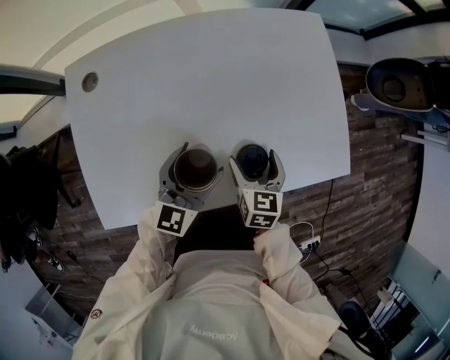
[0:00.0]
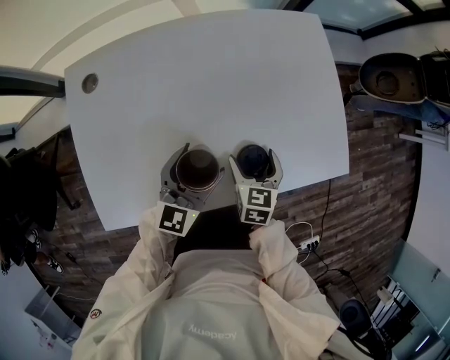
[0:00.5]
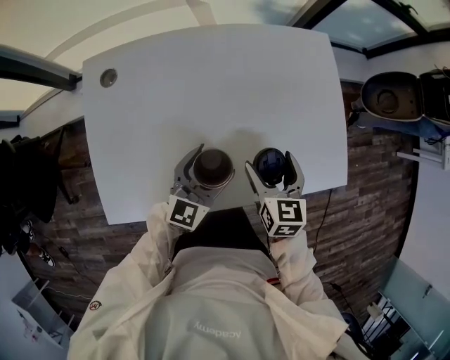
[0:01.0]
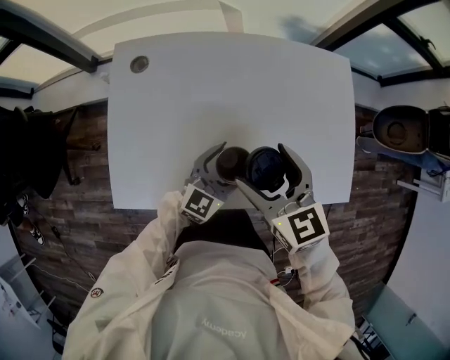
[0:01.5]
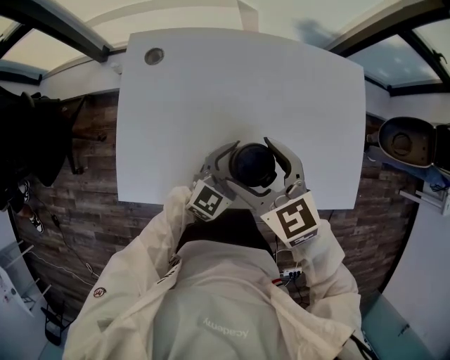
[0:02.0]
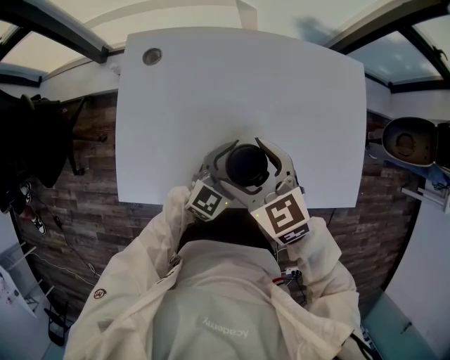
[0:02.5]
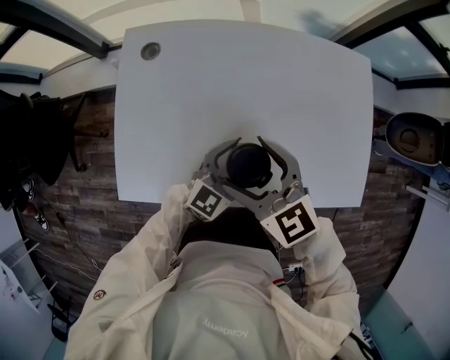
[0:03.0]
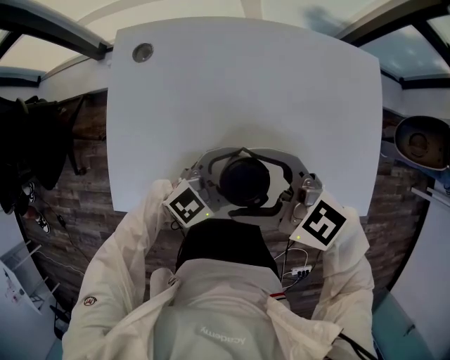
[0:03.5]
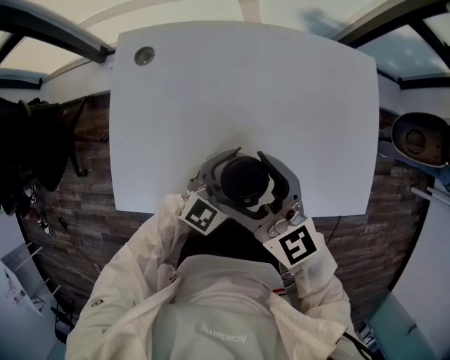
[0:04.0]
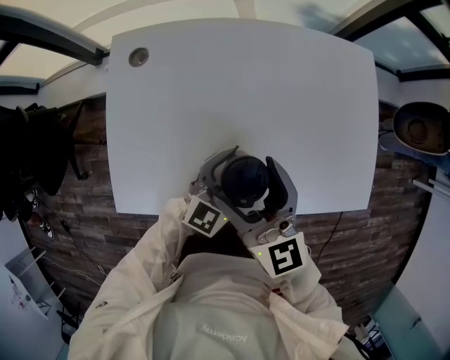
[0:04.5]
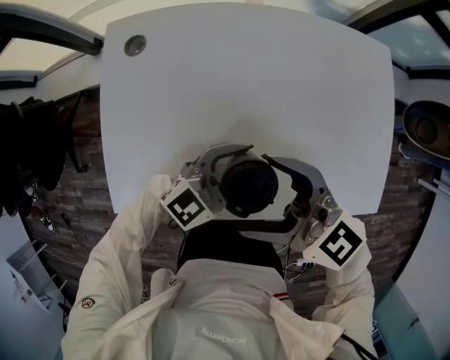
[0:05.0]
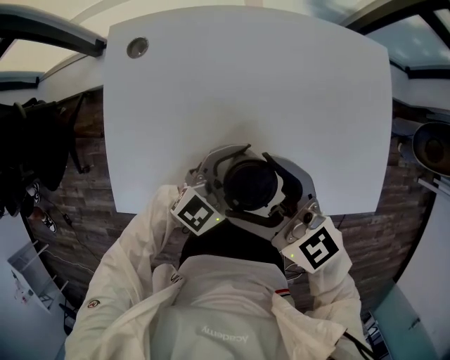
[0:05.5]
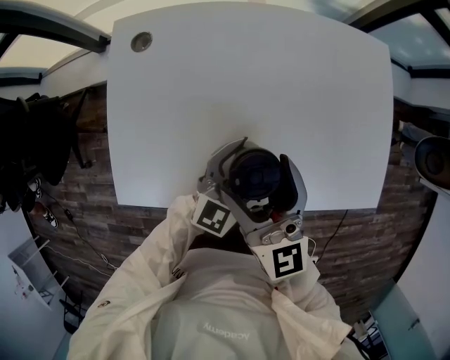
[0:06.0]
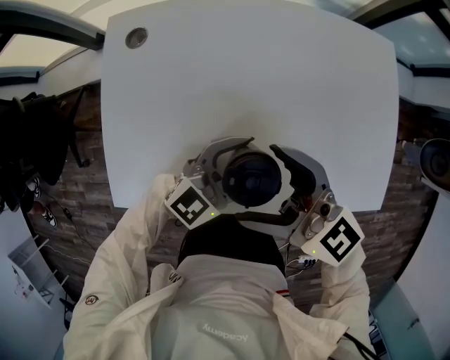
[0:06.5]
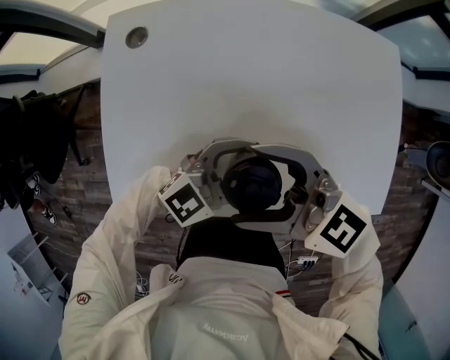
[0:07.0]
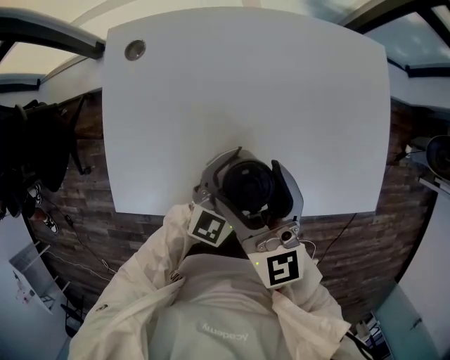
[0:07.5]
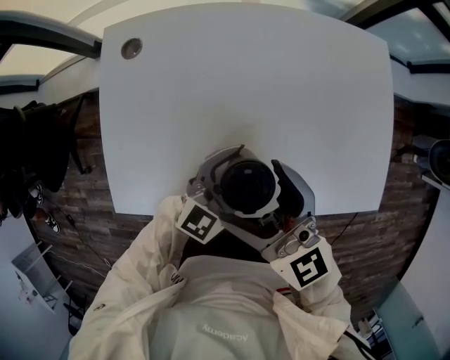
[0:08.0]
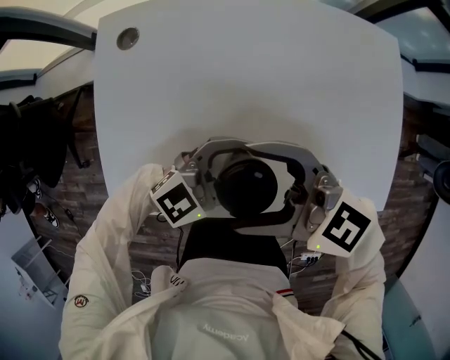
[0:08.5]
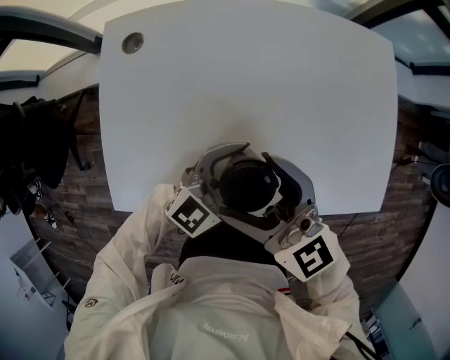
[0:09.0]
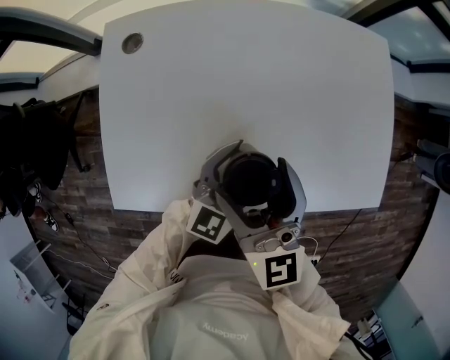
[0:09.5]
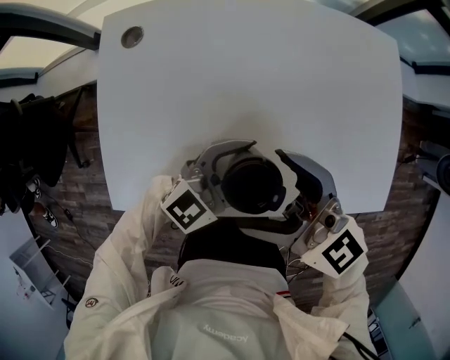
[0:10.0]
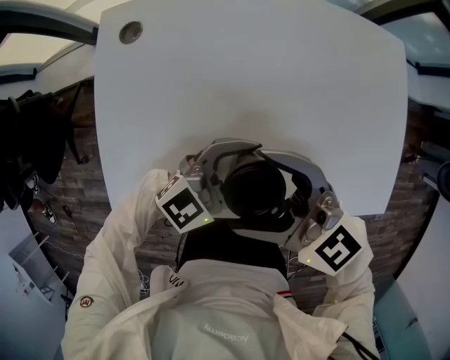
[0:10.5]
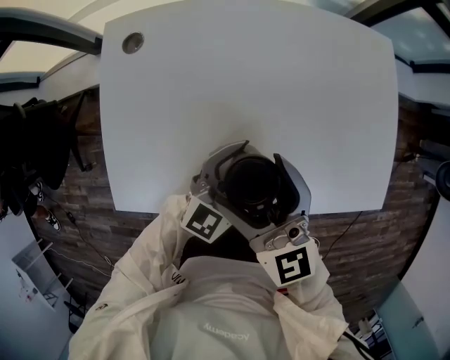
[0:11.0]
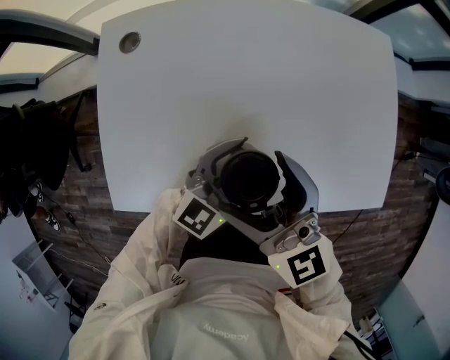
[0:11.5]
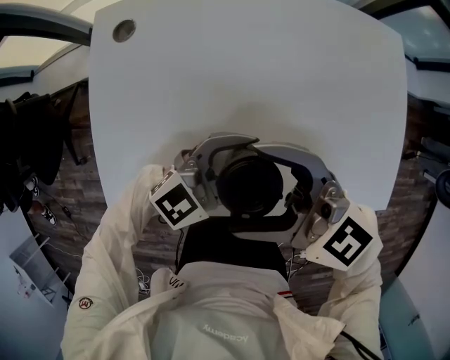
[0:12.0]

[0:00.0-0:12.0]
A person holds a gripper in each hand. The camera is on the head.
0:00.0 to 0:02.0: The right gripper moves upward, about 20 cm, and swivels roughly 50 degrees.
0:02.0 to 0:04.0: The right gripper changes its angle by roughly 20 degrees.
0:04.0 to 0:06.0: The right gripper swivels about 20 degrees.

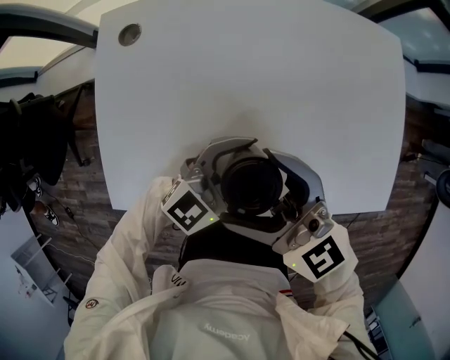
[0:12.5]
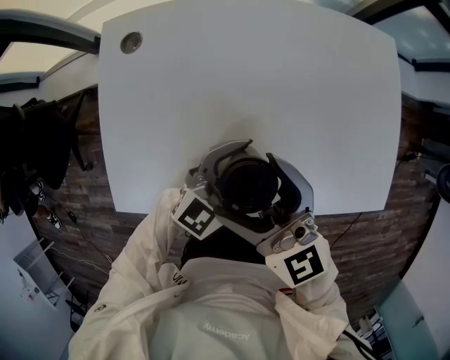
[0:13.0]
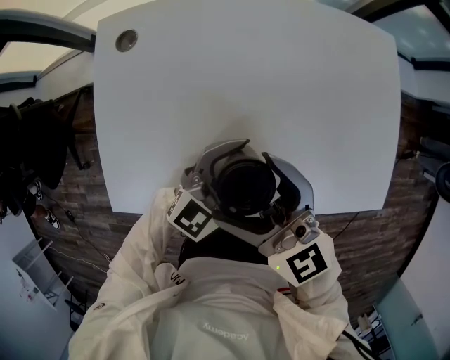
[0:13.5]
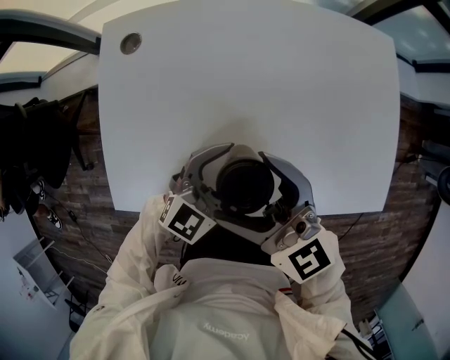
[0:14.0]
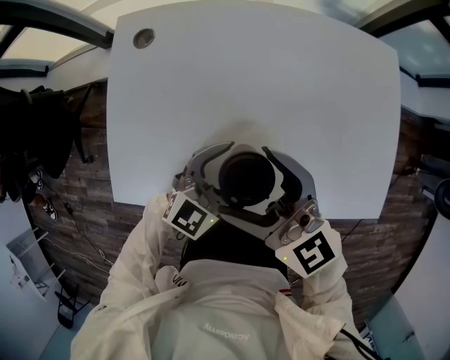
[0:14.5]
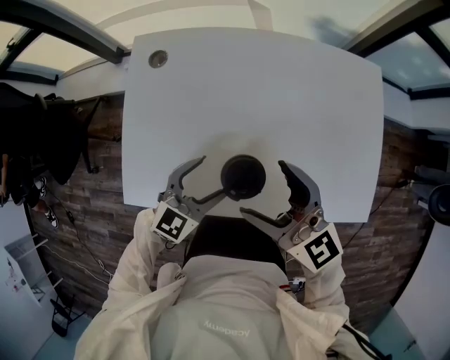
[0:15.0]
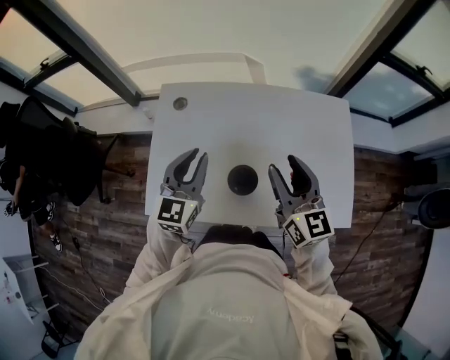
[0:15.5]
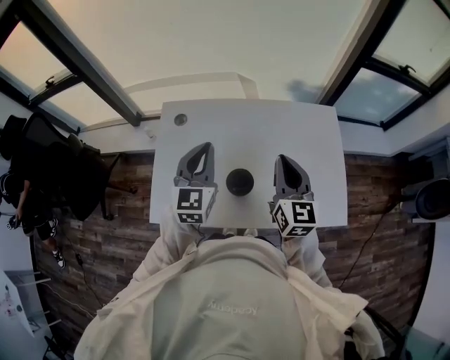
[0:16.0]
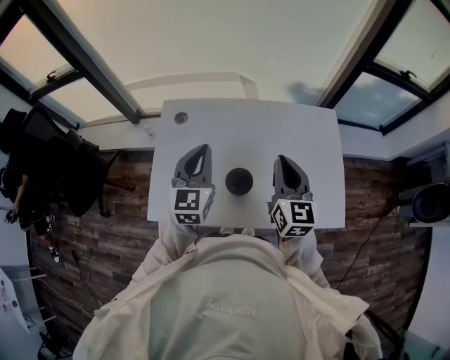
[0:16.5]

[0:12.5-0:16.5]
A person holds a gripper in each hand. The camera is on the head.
0:12.5 to 0:14.5: The grippers make only small movements.
0:14.5 to 0:16.5: The right gripper heads upward and to the right, covering approximately 20 cm, changes its angle by roughly 40 degrees, and closes, while the left gripper heads upward, covering approximately 30 cm, turns by roughly 40 degrees, and closes up.

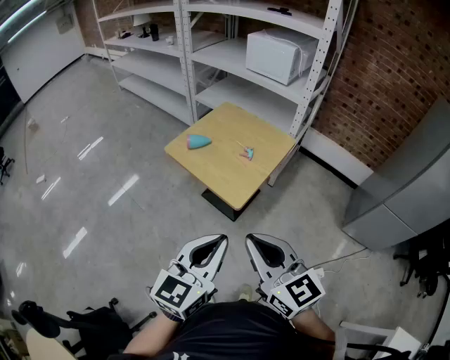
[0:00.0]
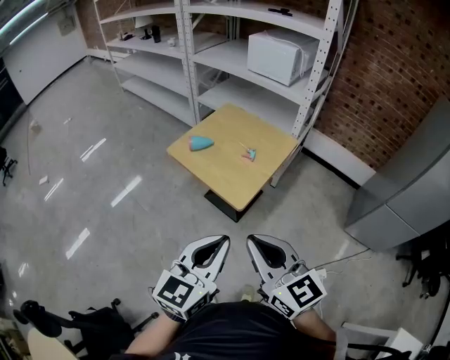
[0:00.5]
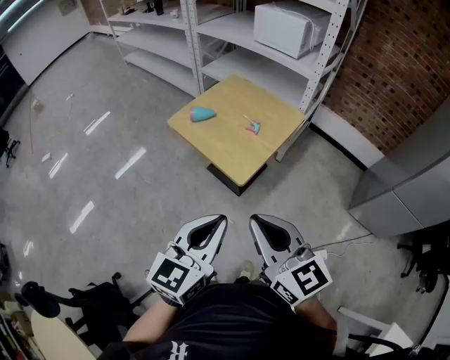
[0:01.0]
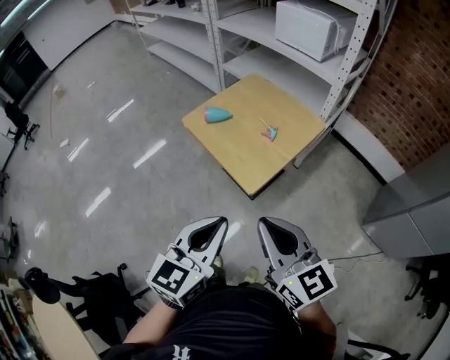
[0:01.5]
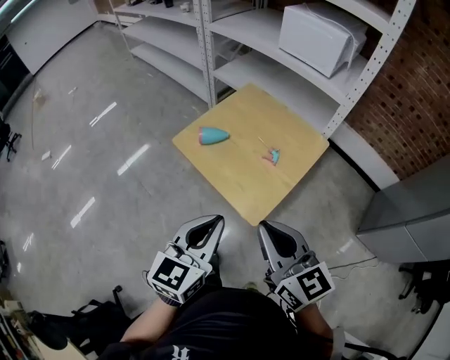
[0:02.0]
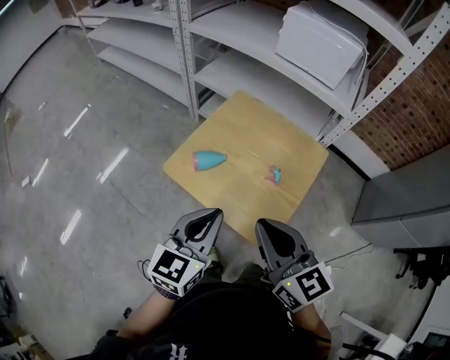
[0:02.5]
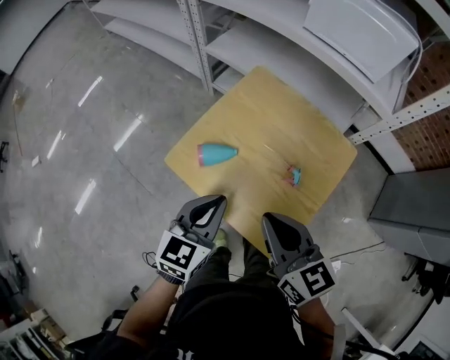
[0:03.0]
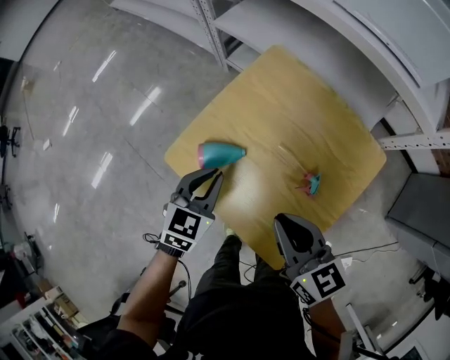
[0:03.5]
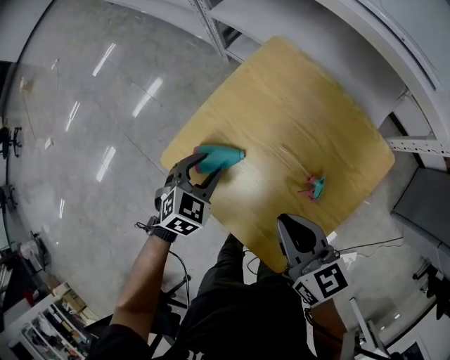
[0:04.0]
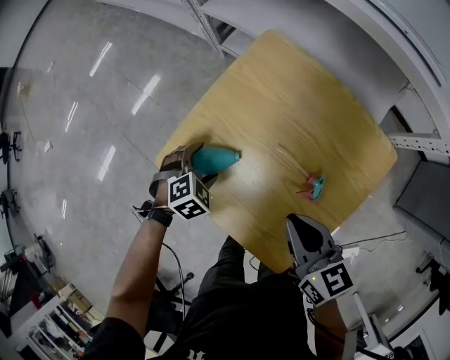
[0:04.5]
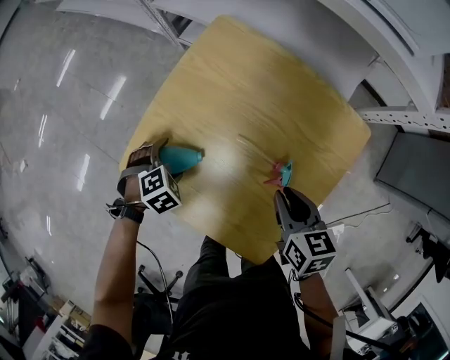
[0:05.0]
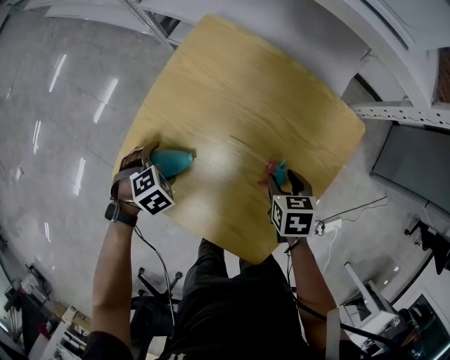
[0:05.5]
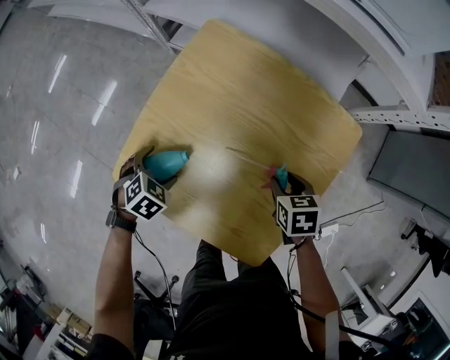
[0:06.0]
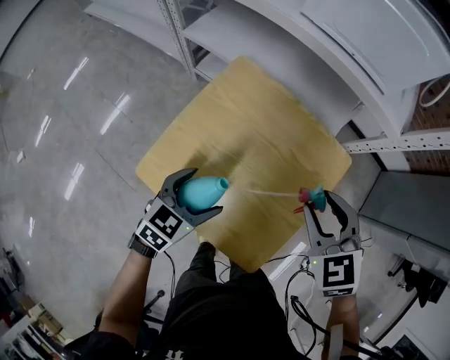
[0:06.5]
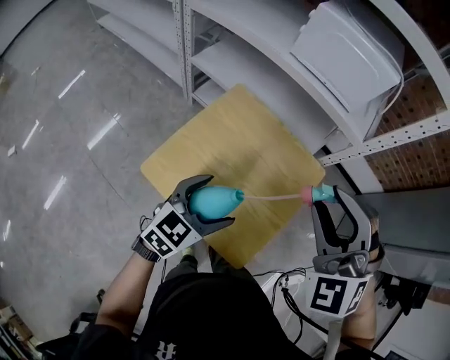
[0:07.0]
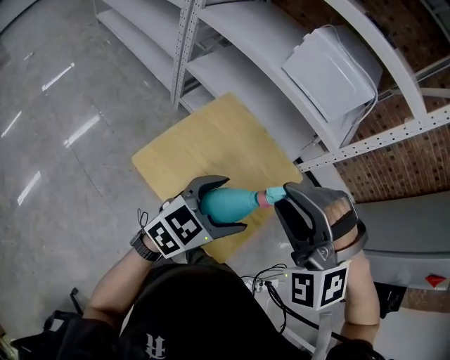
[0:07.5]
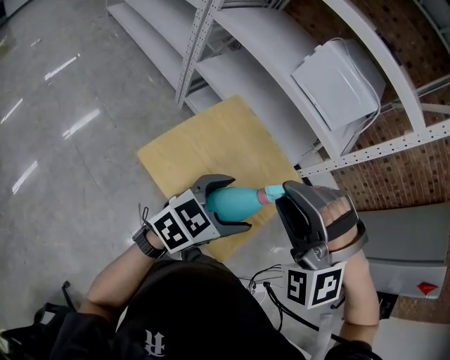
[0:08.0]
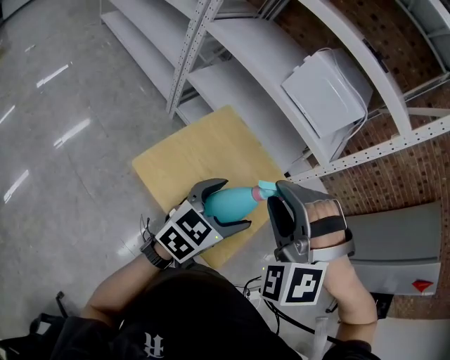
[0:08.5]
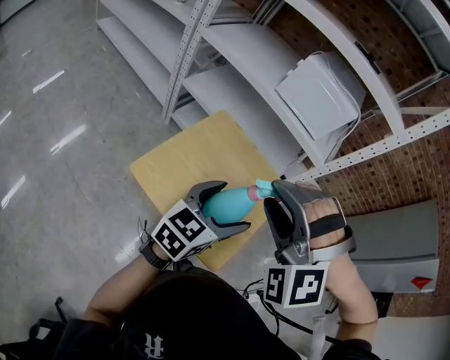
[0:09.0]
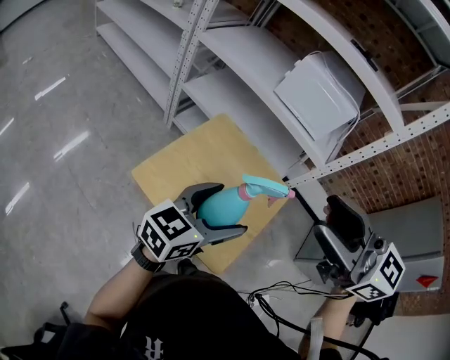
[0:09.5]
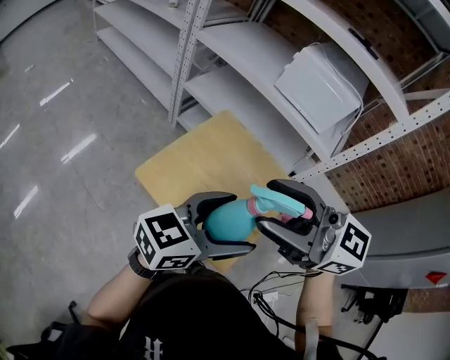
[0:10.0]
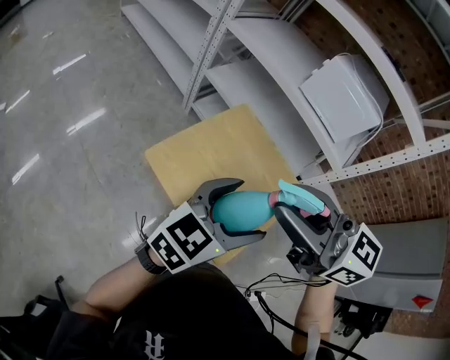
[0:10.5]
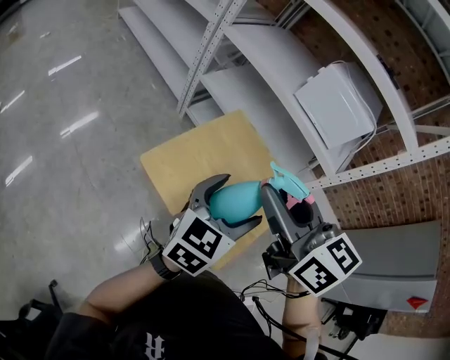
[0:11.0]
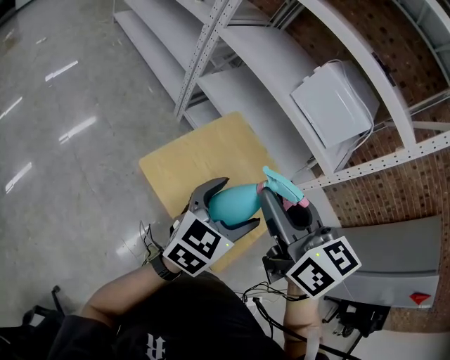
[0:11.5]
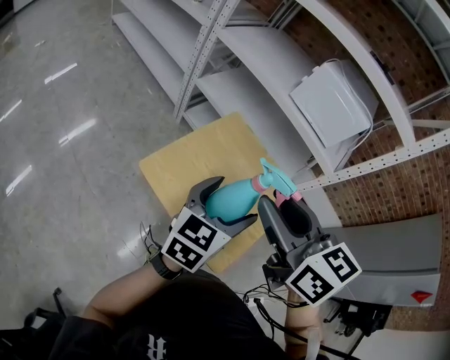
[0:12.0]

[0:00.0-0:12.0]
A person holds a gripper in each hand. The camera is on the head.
0:00.0 to 0:02.0: Both grippers move forward, roughly 25 cm.
0:02.0 to 0:04.0: The two grippers go about 50 cm forward and downward. The left gripper points its fingers roughly 40 degrees further downward, and opens its fingers; the right gripper changes its angle by roughly 20 degrees.
0:04.0 to 0:06.0: The right gripper goes some 20 cm downward, points its fingers about 40 degrees further downward, and opens up. The left gripper moves downward, some 10 cm, changes its angle by approximately 20 degrees, and opens.
0:06.0 to 0:08.0: Both grippers travel together upward, about 50 cm. The left gripper tips its fingers upward by about 60 degrees. The right gripper rotates around the line of its fingers by some 110 degrees, counterclockwise from behind.
0:08.0 to 0:10.0: The two grippers go some 5 cm upward. The right gripper angles its fingers upward, by about 30 degrees.
0:10.0 to 0:12.0: The right gripper changes place by roughly 5 cm, rotates roughly 40 degrees, and closes up, while the left gripper moves about 10 cm, and turns by approximately 30 degrees.
